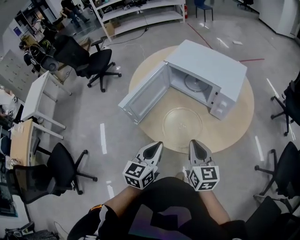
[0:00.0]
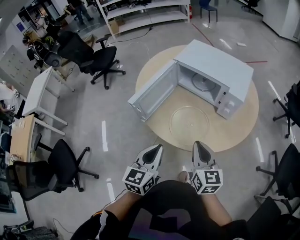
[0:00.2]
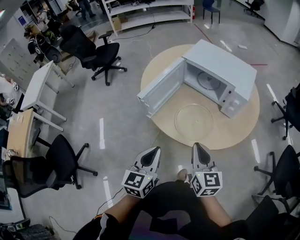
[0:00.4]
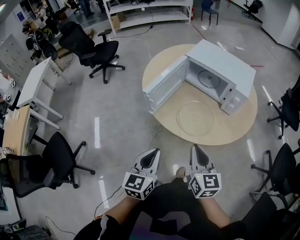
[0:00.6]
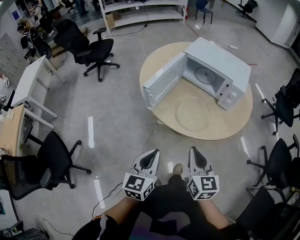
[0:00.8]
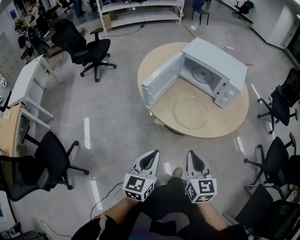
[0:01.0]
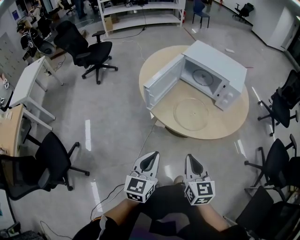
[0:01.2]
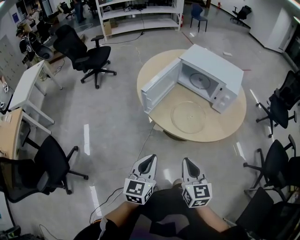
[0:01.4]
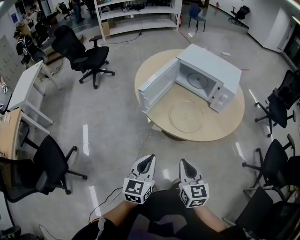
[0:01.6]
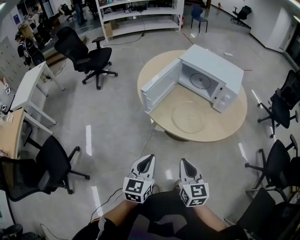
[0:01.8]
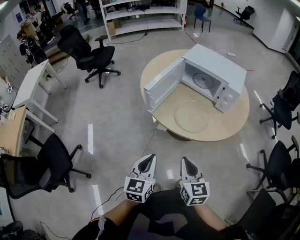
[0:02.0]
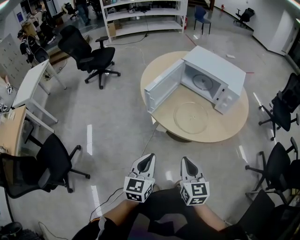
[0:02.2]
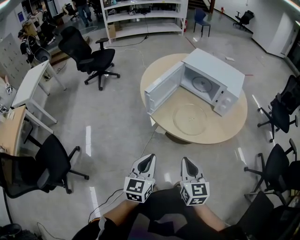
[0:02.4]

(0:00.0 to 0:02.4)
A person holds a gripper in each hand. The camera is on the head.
0:00.0 - 0:01.2: Both grippers travel together backward and to the left, about 20 cm.
0:01.2 - 0:02.4: The grippers stay close to where they were, moving slightly.

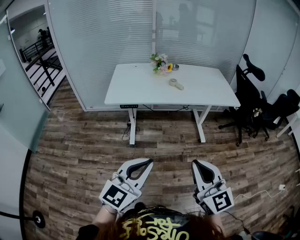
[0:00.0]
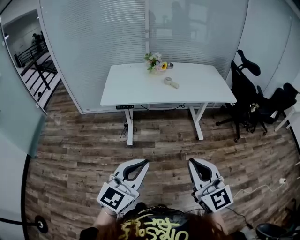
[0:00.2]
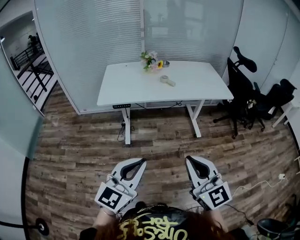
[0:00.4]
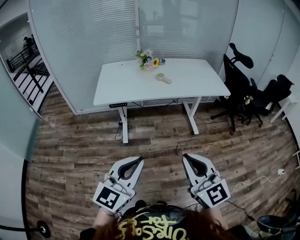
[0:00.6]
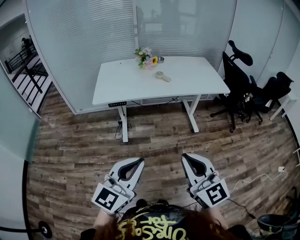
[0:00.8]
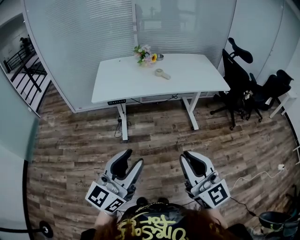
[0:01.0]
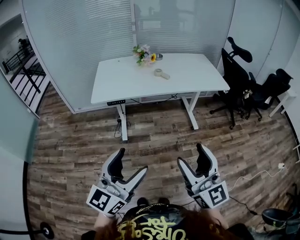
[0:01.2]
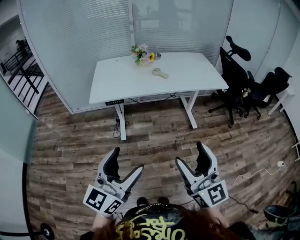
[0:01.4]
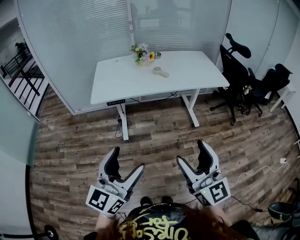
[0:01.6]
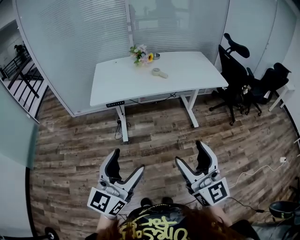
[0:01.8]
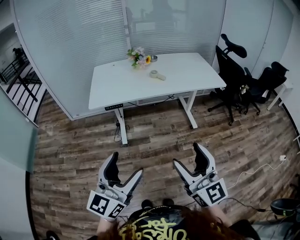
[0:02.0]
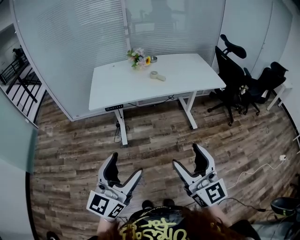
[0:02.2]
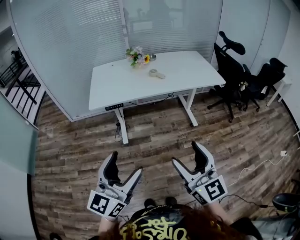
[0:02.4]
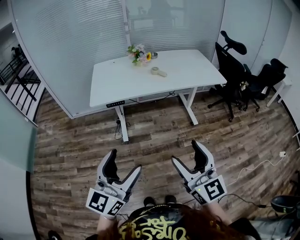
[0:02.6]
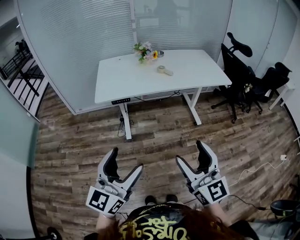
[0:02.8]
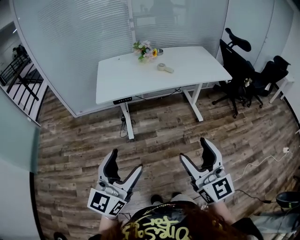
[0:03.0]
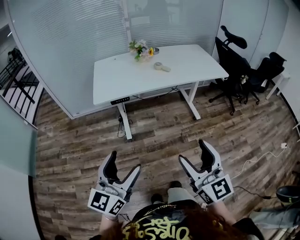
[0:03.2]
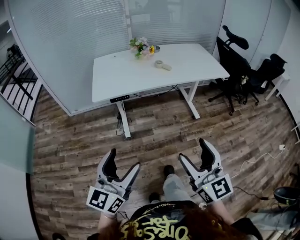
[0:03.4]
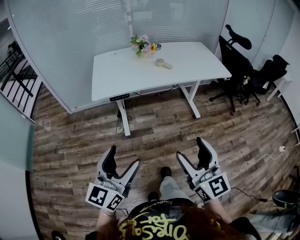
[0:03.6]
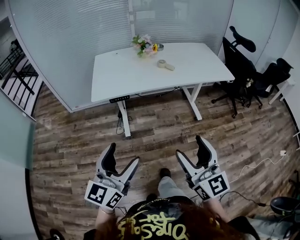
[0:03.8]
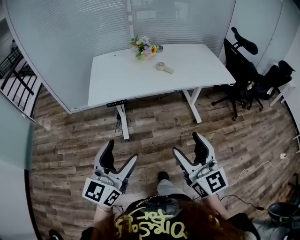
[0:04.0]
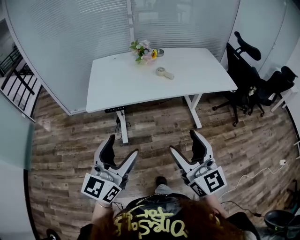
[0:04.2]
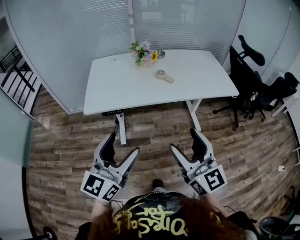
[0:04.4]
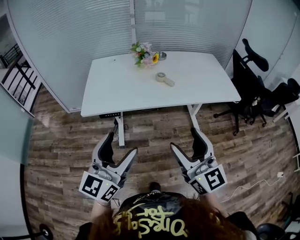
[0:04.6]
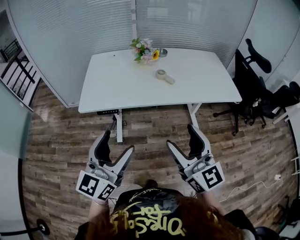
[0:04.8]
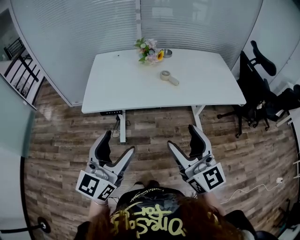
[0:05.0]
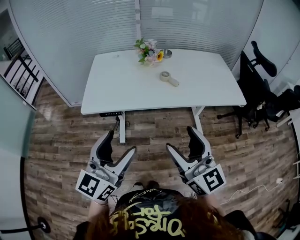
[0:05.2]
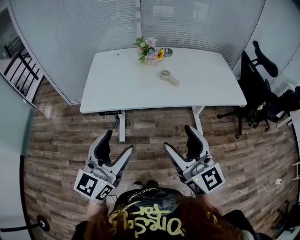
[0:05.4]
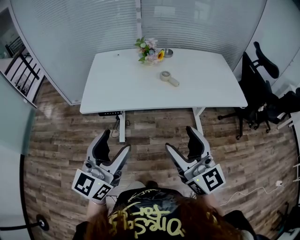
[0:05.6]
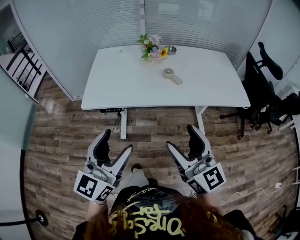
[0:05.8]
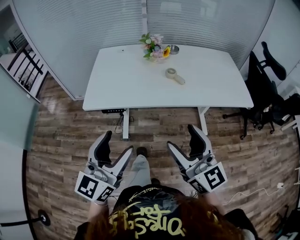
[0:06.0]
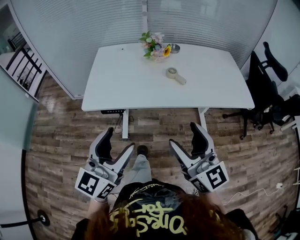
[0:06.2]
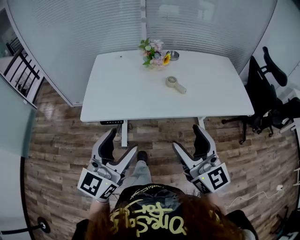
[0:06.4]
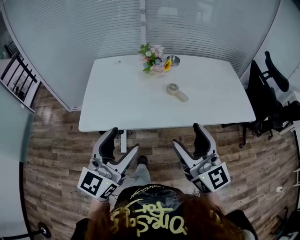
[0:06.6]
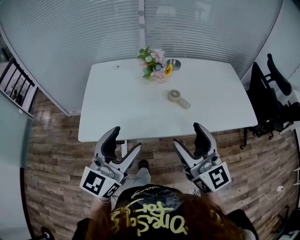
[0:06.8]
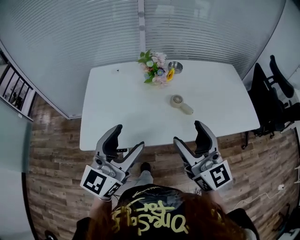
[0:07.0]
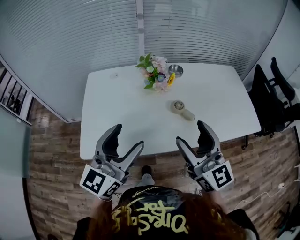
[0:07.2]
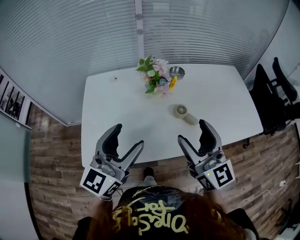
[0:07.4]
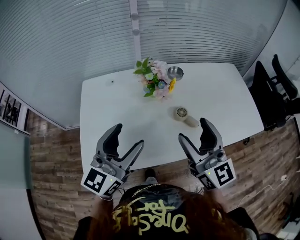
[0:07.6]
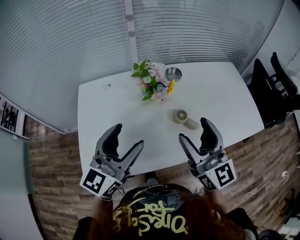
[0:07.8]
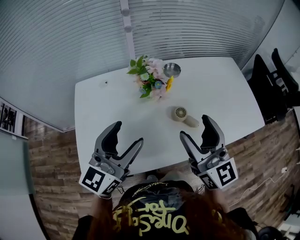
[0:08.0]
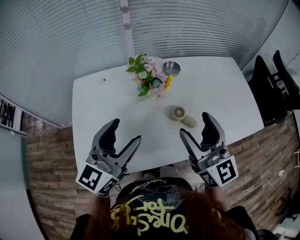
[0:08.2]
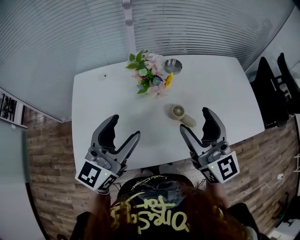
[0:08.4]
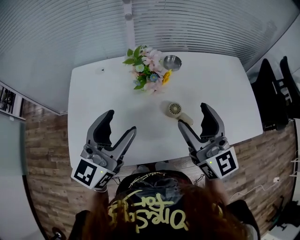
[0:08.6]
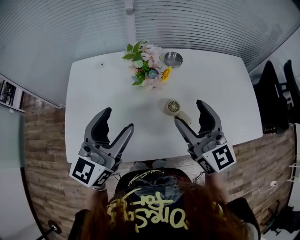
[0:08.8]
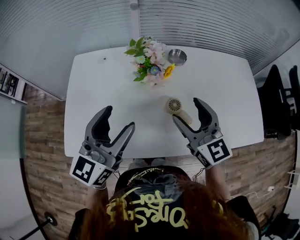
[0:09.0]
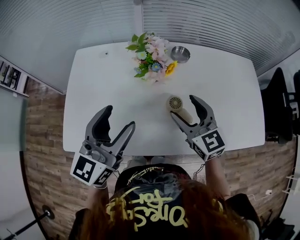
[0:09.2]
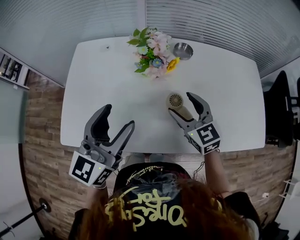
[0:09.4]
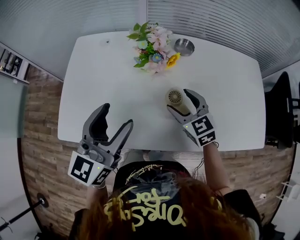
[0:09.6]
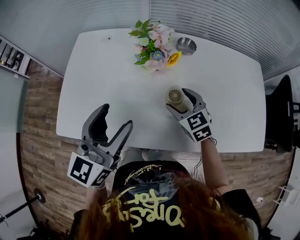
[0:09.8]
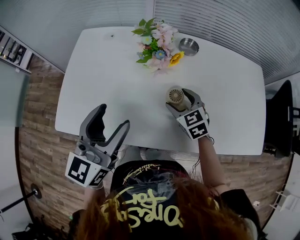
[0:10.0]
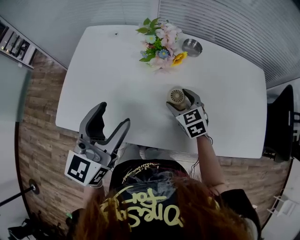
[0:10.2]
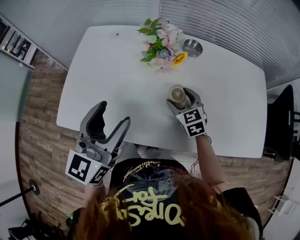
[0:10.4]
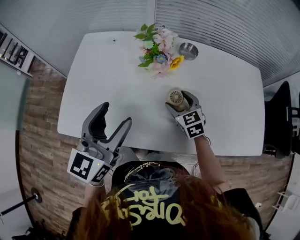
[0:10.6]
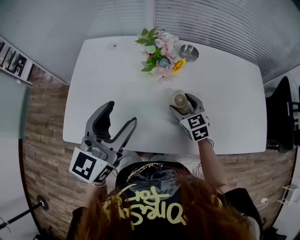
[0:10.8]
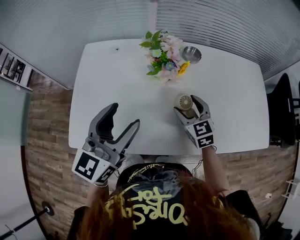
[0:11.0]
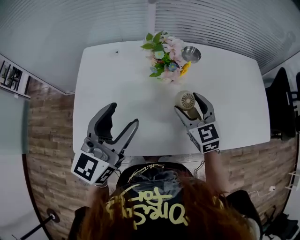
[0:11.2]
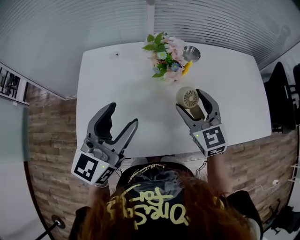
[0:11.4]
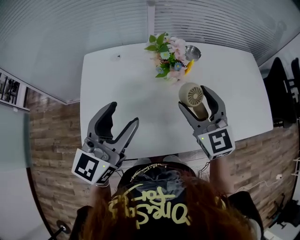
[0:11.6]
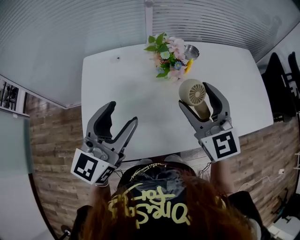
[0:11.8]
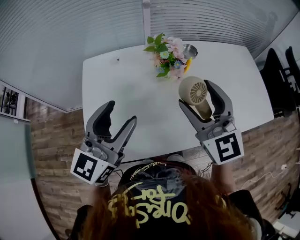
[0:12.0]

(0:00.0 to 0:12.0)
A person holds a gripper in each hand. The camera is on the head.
0:00.0 - 0:01.6: The left gripper heads to the left, covering roughly 5 cm, and opens up. The right gripper opens up.
0:01.6 - 0:03.0: Both grippers move to the left, roughly 5 cm.
0:03.0 - 0:04.4: Both grippers move forward, some 20 cm.
0:04.4 - 0:06.0: Both grippers travel together forward, roughly 10 cm.
0:06.0 - 0:07.6: The two grippers go approximately 35 cm forward.
0:07.6 - 0:09.0: The right gripper travels forward and downward by roughly 15 cm, while the left gripper shifts approximately 5 cm forward.
0:09.0 - 0:10.4: The left gripper changes place by about 5 cm. The right gripper goes some 20 cm downward, and rotates roughly 30 degrees.
0:10.4 - 0:12.0: The left gripper heads to the left, covering approximately 10 cm, and rotates approximately 20 degrees, while the right gripper travels upward and to the left by roughly 30 cm, and tips its fingers upward by approximately 30 degrees.

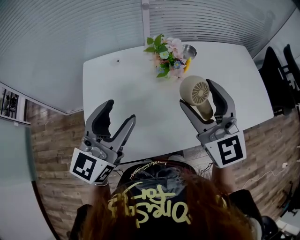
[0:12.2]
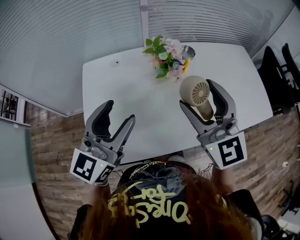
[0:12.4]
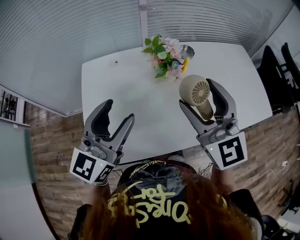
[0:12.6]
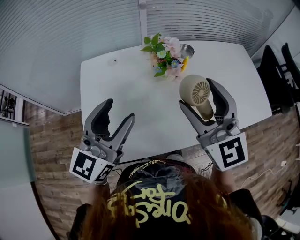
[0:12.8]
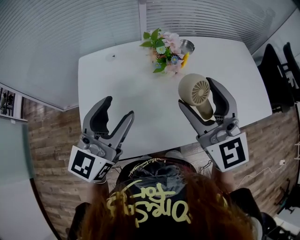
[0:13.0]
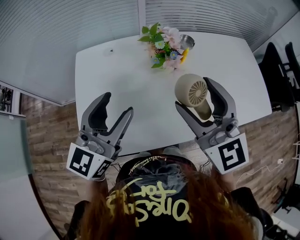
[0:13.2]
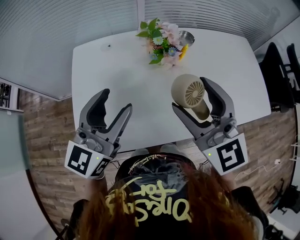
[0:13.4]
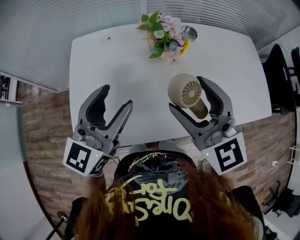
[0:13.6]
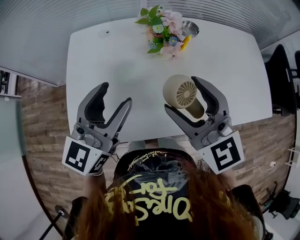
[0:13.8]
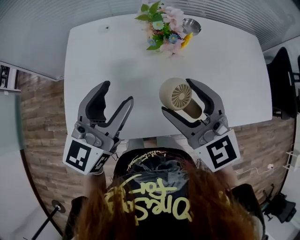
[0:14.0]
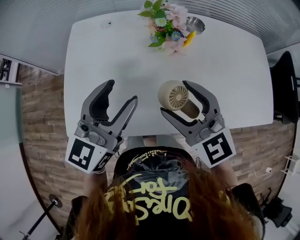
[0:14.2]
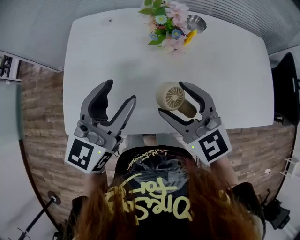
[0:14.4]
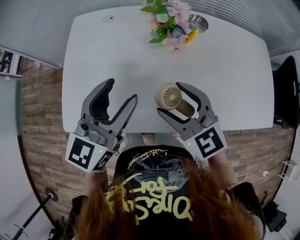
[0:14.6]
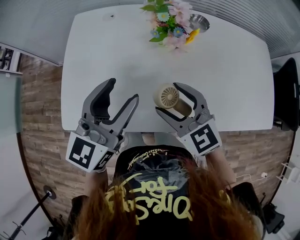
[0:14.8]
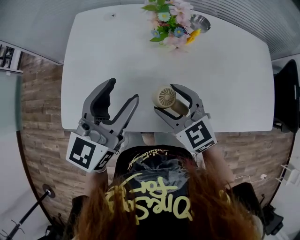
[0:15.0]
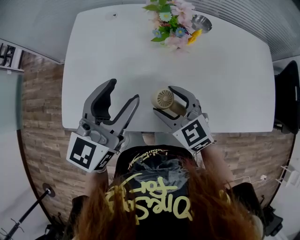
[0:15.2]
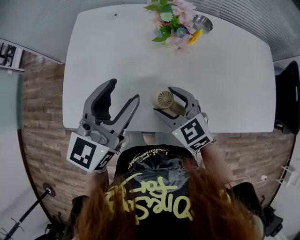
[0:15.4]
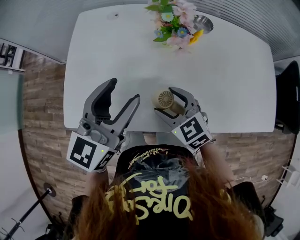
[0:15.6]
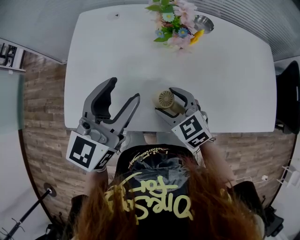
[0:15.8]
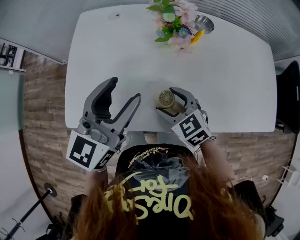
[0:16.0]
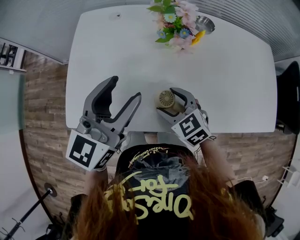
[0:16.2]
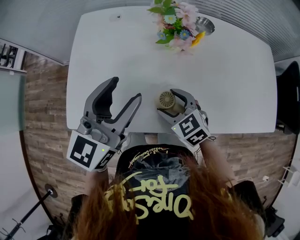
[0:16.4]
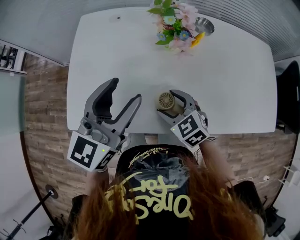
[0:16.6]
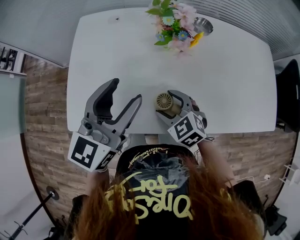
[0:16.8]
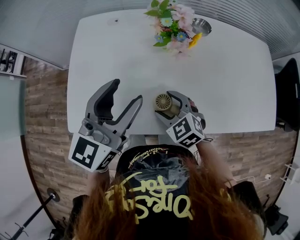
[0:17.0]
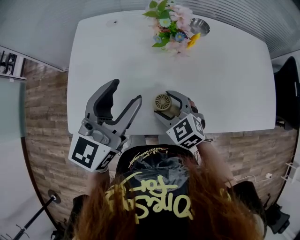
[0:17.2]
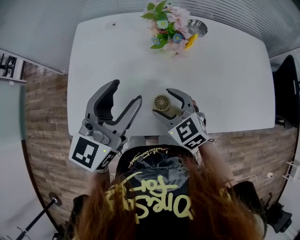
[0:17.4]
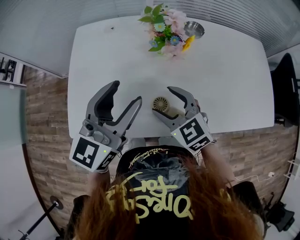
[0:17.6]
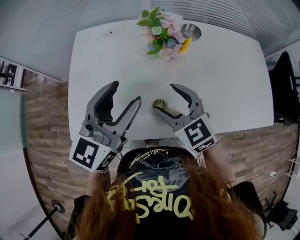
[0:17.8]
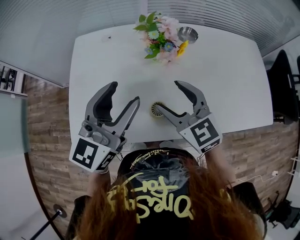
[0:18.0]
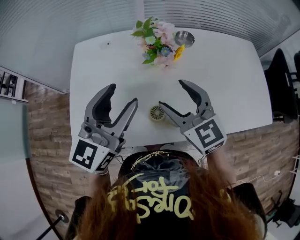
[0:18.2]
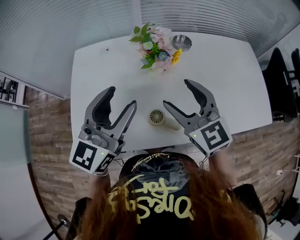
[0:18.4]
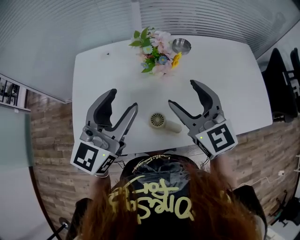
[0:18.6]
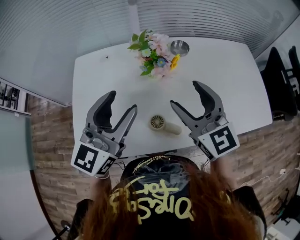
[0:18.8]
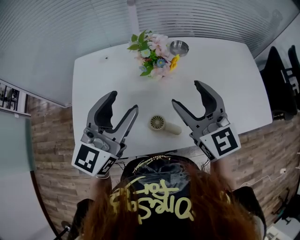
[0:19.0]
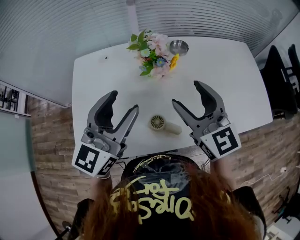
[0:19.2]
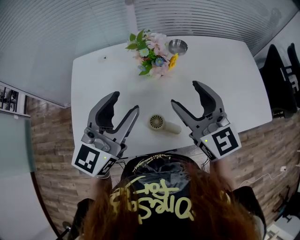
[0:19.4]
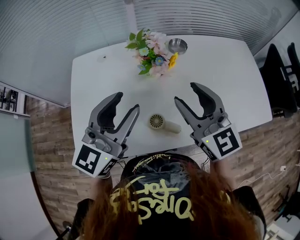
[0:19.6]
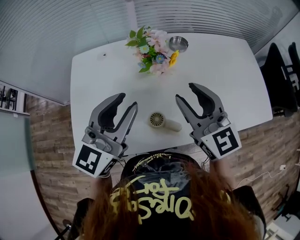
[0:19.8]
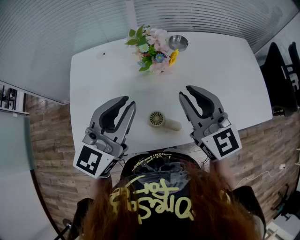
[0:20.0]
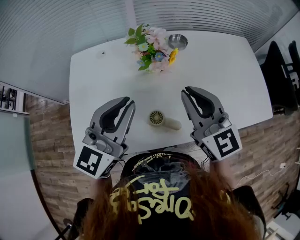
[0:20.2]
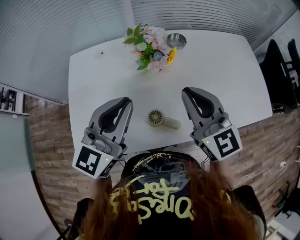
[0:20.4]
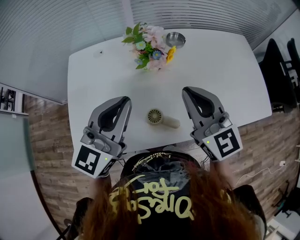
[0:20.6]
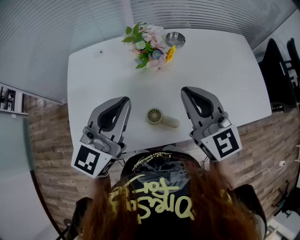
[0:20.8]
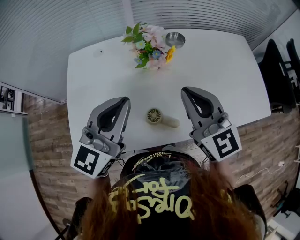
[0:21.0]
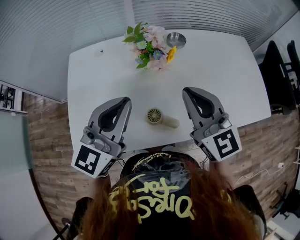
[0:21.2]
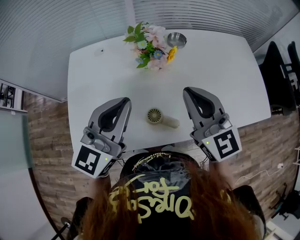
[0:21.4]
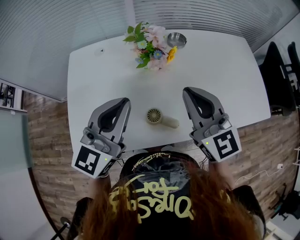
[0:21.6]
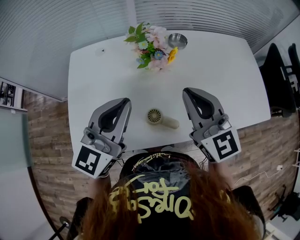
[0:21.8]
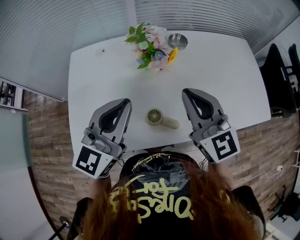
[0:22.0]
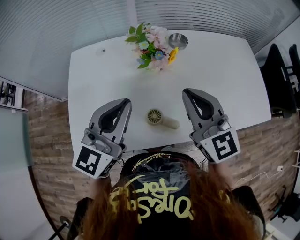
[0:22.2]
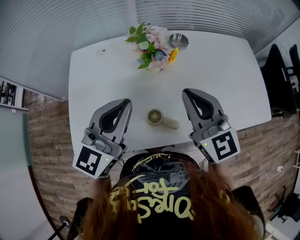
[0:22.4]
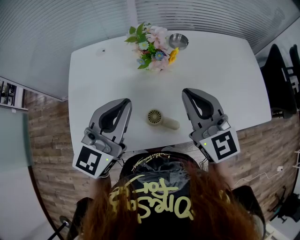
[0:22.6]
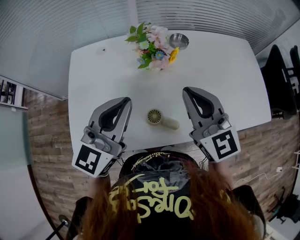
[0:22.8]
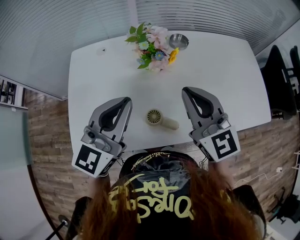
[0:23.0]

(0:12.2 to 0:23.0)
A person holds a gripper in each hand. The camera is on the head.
0:12.2 - 0:13.8: The right gripper shifts by approximately 5 cm. The left gripper changes place by about 5 cm.
0:13.8 - 0:15.2: The right gripper moves downward, roughly 15 cm, and swivels some 30 degrees.
0:15.2 - 0:16.8: The right gripper shifts some 5 cm downward.
0:16.8 - 0:18.4: The right gripper is displaced upward by roughly 20 cm, and tilts its fingers roughly 30 degrees upward.
0:18.4 - 0:20.0: The right gripper closes its fingers. The left gripper closes.
0:20.0 - 0:23.0: Neither gripper changes place.
